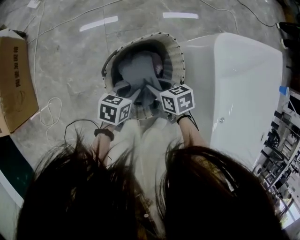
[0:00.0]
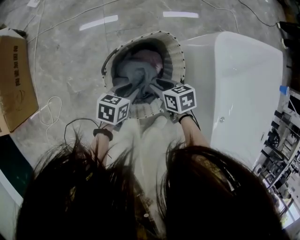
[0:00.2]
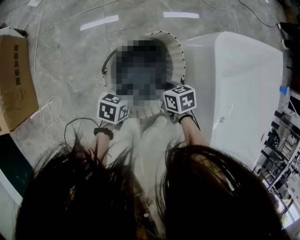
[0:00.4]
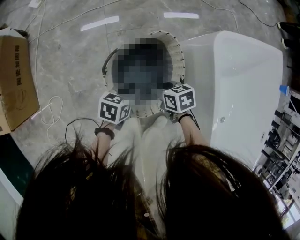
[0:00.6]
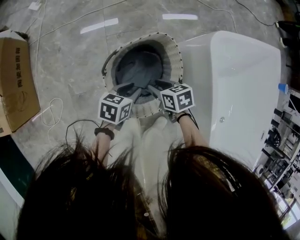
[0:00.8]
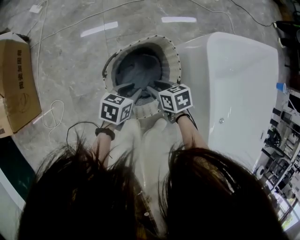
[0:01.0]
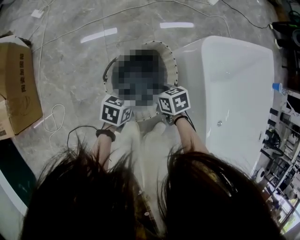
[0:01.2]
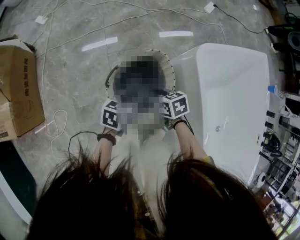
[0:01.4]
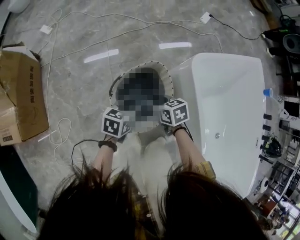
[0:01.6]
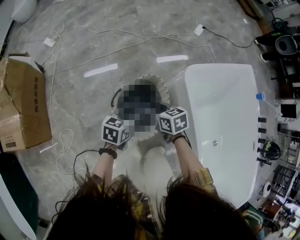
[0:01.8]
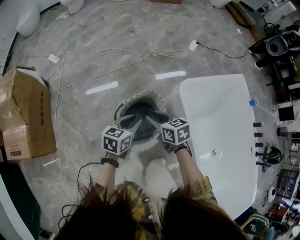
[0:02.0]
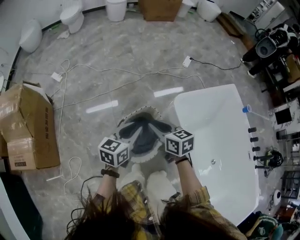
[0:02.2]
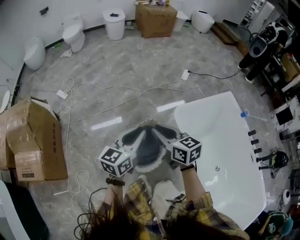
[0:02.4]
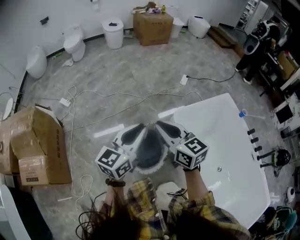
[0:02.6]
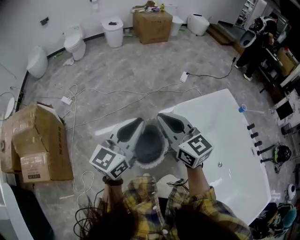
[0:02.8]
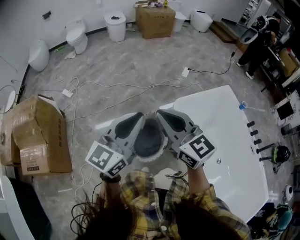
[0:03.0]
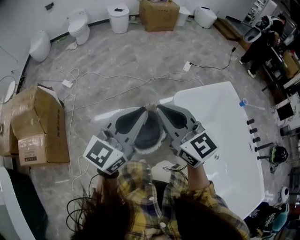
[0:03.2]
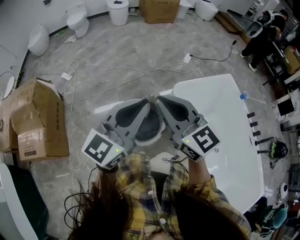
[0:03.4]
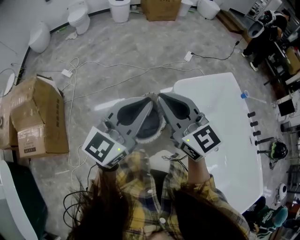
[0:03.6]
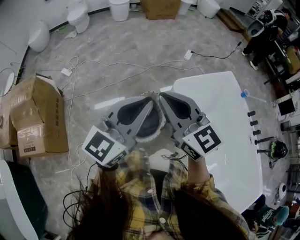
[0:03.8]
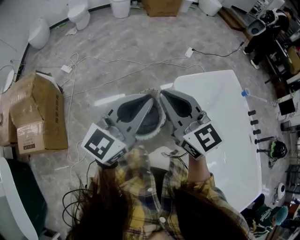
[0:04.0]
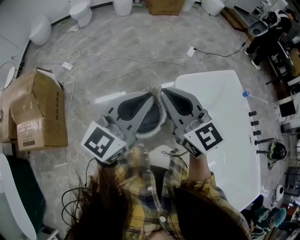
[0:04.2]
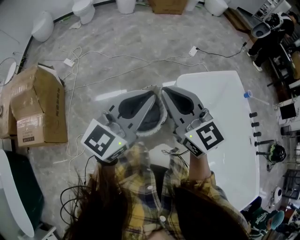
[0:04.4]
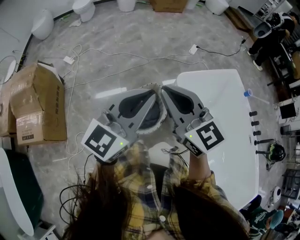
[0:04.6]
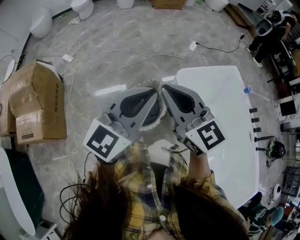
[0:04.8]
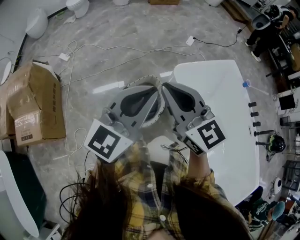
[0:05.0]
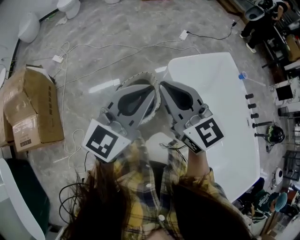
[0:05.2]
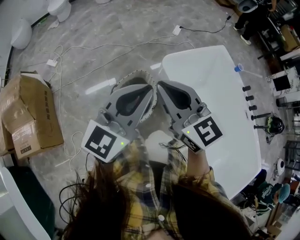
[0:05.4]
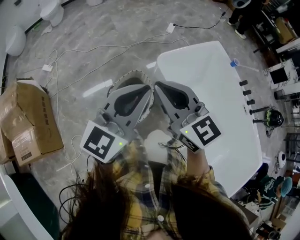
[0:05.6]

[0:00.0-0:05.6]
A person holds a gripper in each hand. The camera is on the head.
0.0 to 1.4 s: Both grippers move upward, approximately 10 cm.
1.4 to 2.8 s: The two grippers go some 50 cm upward. The left gripper angles its fingers upward, by roughly 50 degrees. The right gripper tips its fingers upward by approximately 50 degrees.
2.8 to 4.2 s: The two grippers go roughly 5 cm backward.
4.2 to 5.6 s: The right gripper moves about 5 cm. The left gripper heads to the right, covering roughly 5 cm.

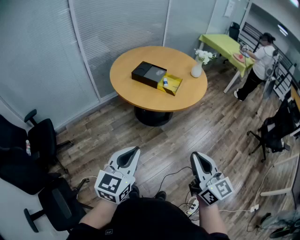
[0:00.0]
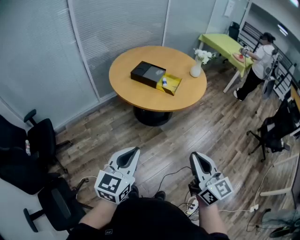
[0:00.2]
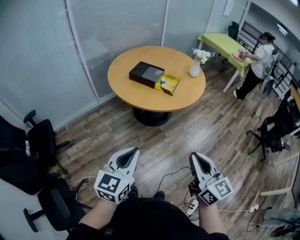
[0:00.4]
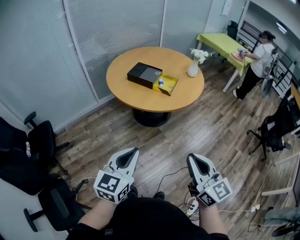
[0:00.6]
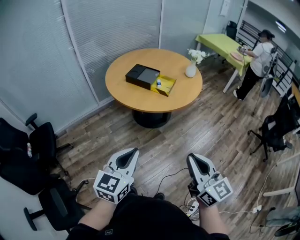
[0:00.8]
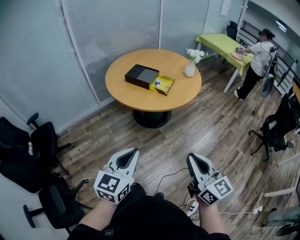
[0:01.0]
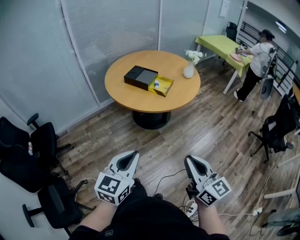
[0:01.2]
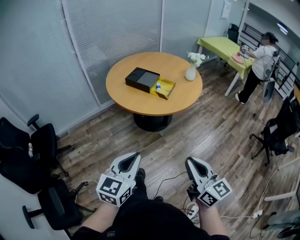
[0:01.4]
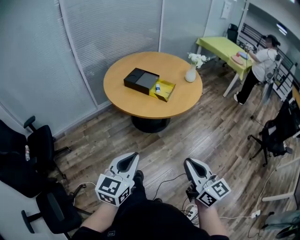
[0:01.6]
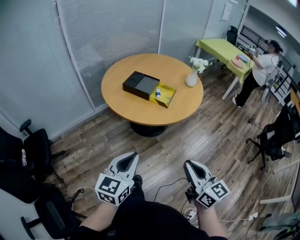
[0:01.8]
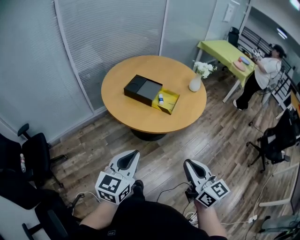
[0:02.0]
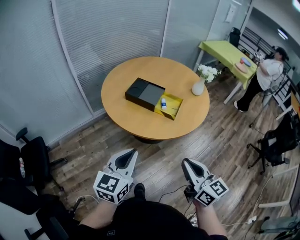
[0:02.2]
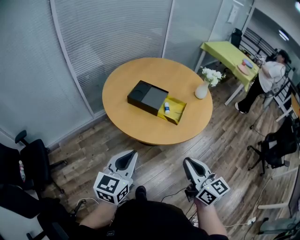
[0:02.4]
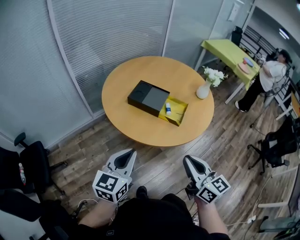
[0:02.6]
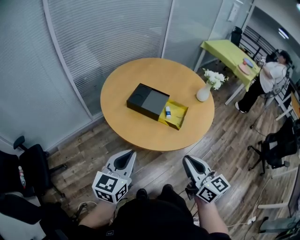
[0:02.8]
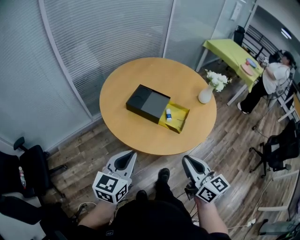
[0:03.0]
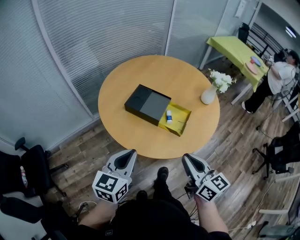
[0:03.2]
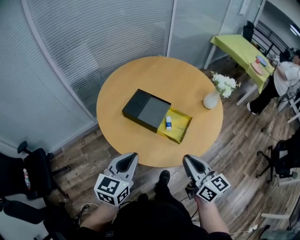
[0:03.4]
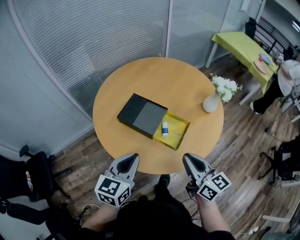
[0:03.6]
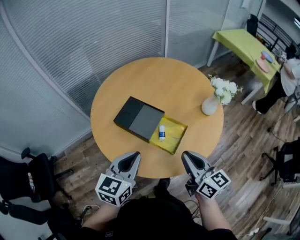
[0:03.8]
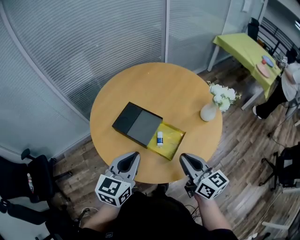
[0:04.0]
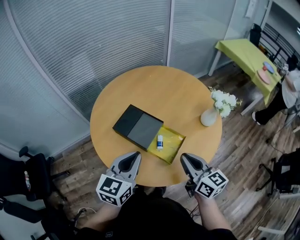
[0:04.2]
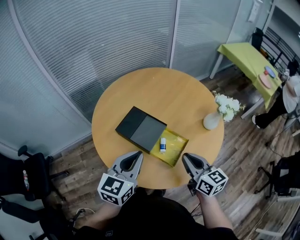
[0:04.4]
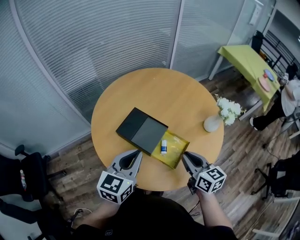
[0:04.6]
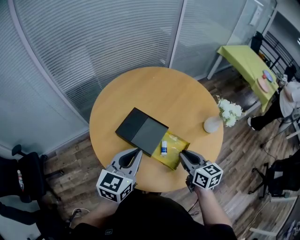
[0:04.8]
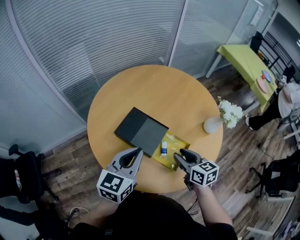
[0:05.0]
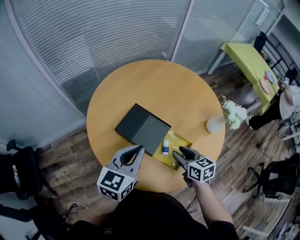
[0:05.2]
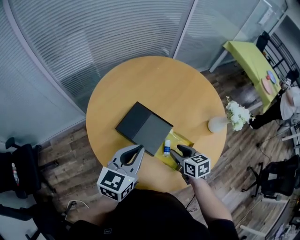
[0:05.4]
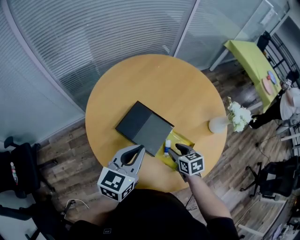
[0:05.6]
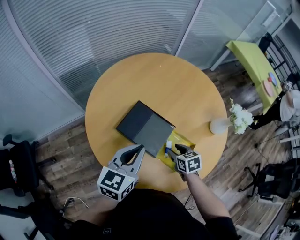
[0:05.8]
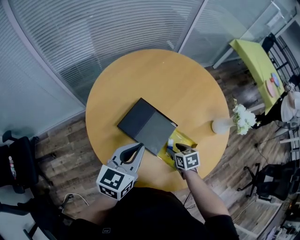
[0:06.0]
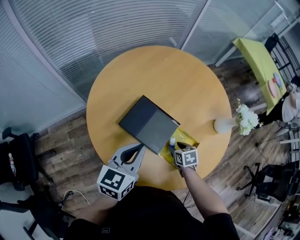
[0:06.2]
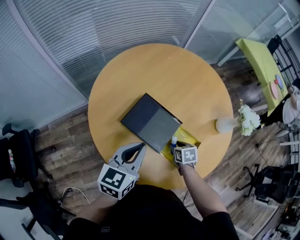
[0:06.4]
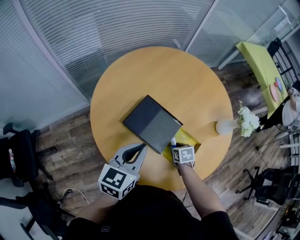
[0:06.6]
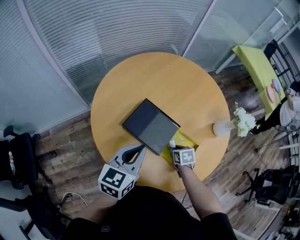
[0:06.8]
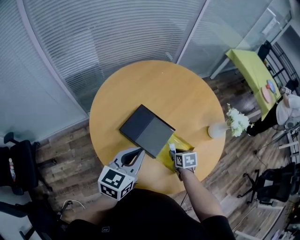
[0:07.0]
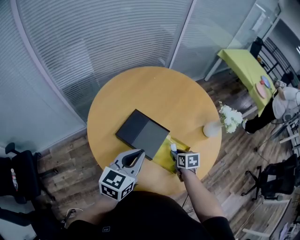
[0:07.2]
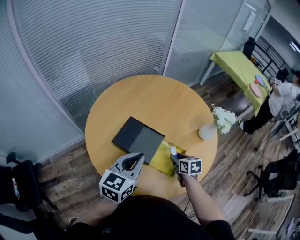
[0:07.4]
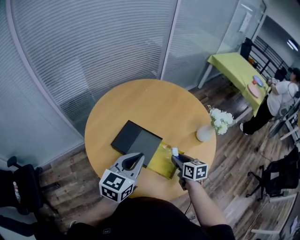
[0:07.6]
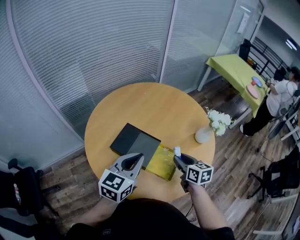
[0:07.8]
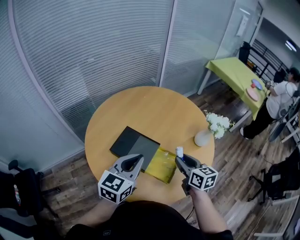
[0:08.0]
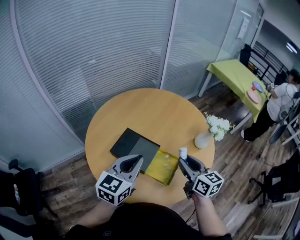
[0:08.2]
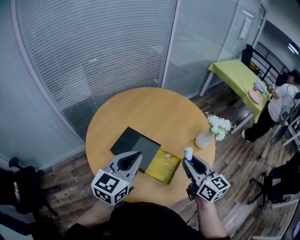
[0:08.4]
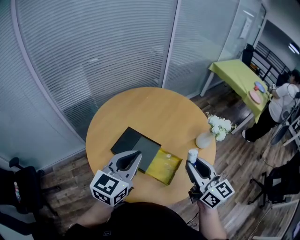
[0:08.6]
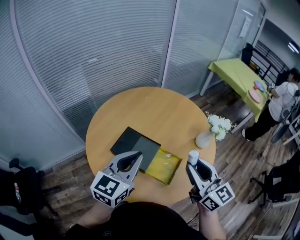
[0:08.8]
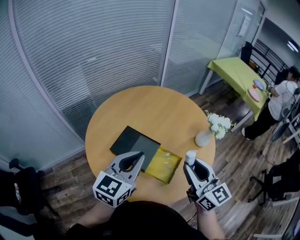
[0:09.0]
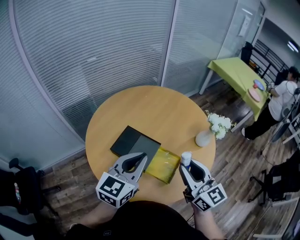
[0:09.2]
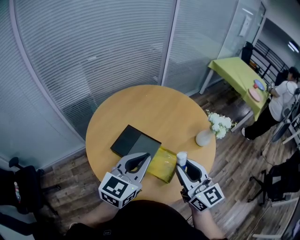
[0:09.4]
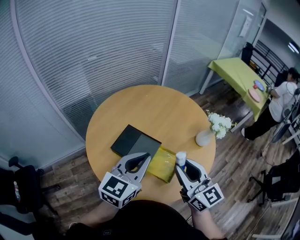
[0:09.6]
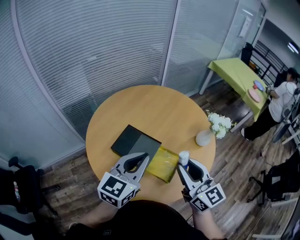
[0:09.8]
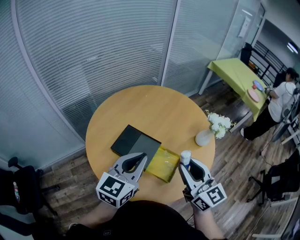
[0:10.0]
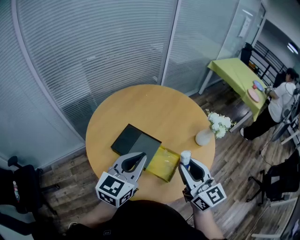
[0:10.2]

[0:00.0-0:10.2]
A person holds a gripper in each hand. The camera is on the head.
0.0 to 1.4 s: Both grippers travel together to the right, roughly 10 cm.
1.4 to 3.0 s: The two grippers go roughly 35 cm forward.
3.0 to 4.4 s: Both grippers move forward and to the right, about 25 cm.
4.4 to 5.8 s: The right gripper heads downward and forward, covering about 25 cm, angles its fingers downward, by approximately 40 degrees, and opens its fingers; the left gripper is displaced forward, to the left and downward by roughly 10 cm.
7.2 to 8.8 s: The left gripper is displaced upward by roughly 10 cm, while the right gripper is displaced upward by about 35 cm, and points its fingers roughly 50 degrees further upward.
8.8 to 10.2 s: There are only small adjustments of the grippers.

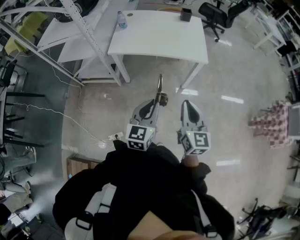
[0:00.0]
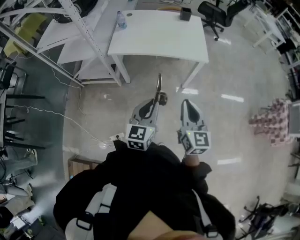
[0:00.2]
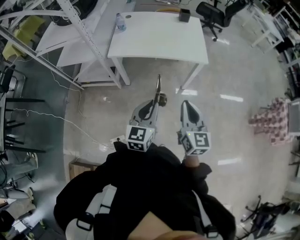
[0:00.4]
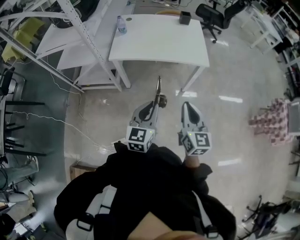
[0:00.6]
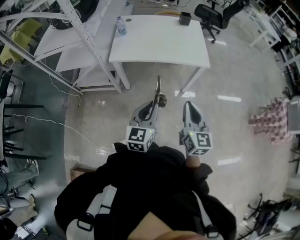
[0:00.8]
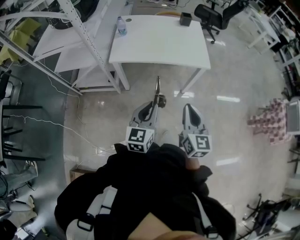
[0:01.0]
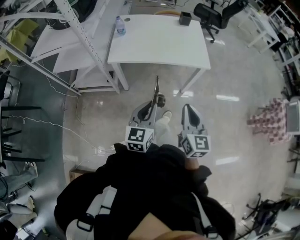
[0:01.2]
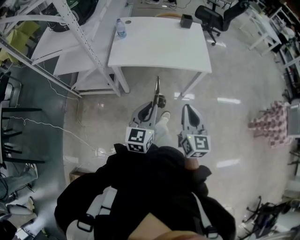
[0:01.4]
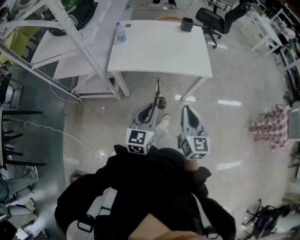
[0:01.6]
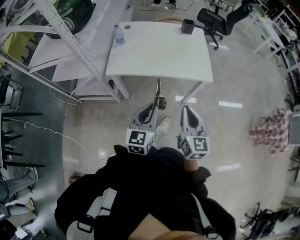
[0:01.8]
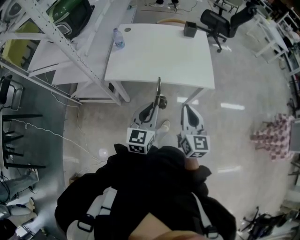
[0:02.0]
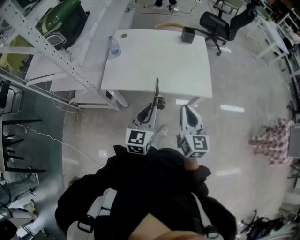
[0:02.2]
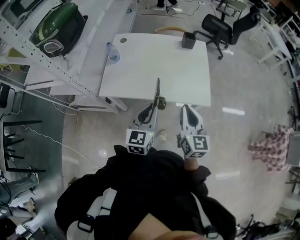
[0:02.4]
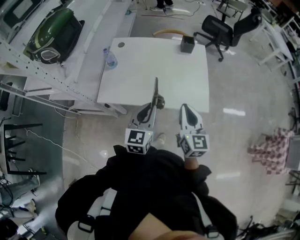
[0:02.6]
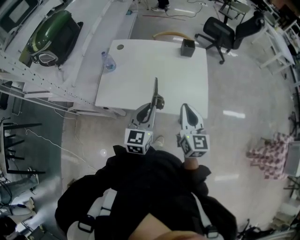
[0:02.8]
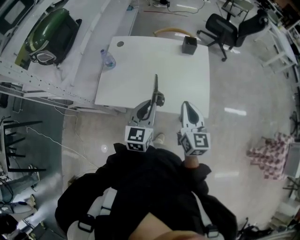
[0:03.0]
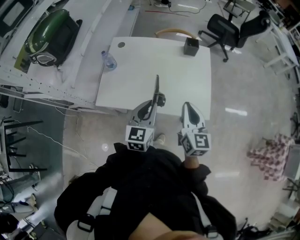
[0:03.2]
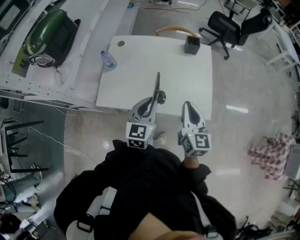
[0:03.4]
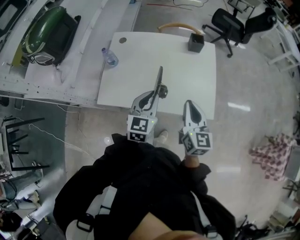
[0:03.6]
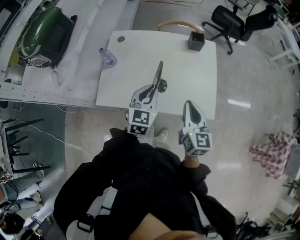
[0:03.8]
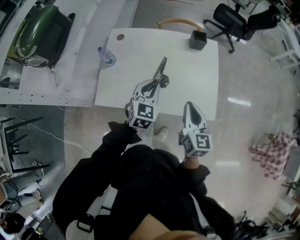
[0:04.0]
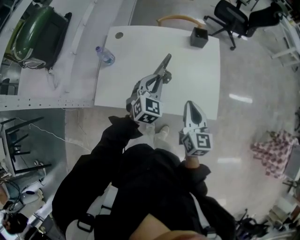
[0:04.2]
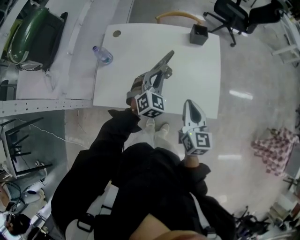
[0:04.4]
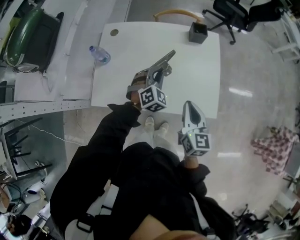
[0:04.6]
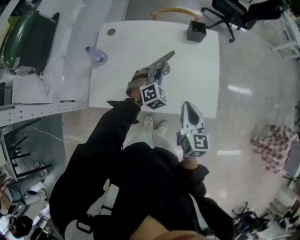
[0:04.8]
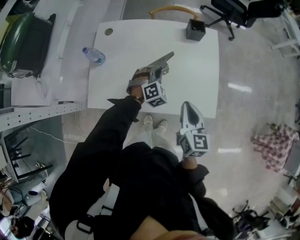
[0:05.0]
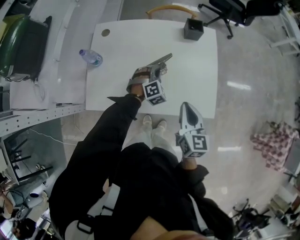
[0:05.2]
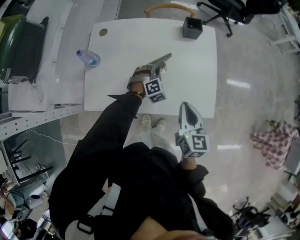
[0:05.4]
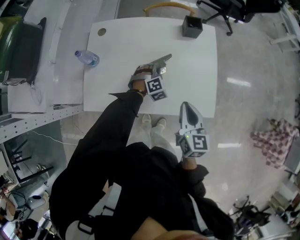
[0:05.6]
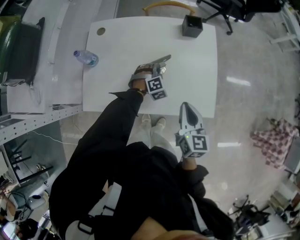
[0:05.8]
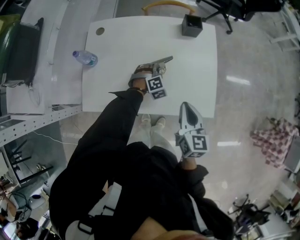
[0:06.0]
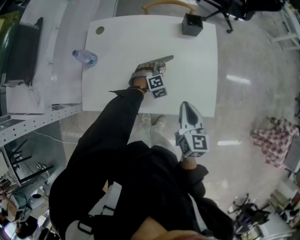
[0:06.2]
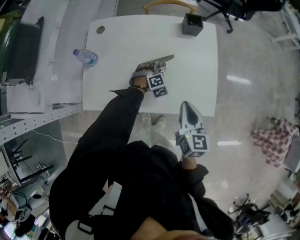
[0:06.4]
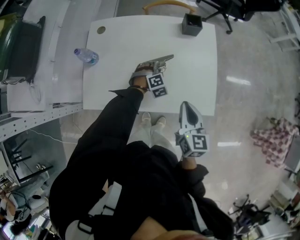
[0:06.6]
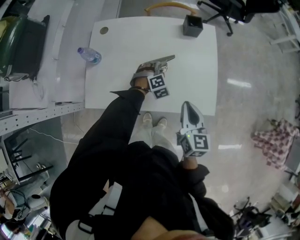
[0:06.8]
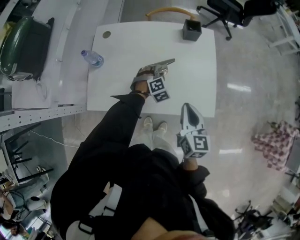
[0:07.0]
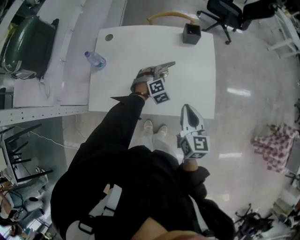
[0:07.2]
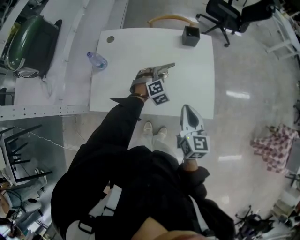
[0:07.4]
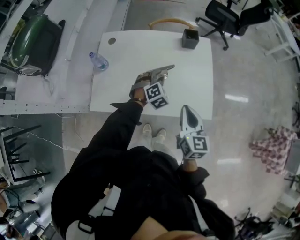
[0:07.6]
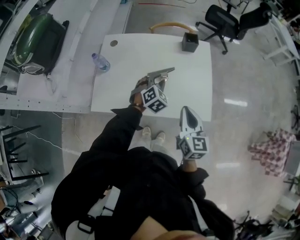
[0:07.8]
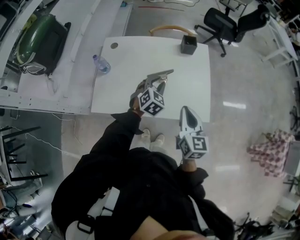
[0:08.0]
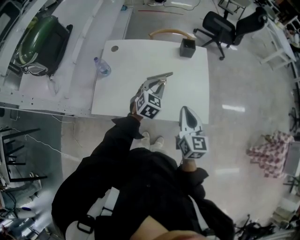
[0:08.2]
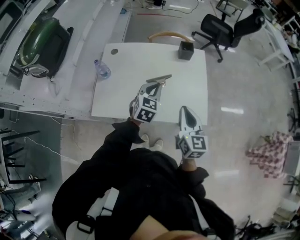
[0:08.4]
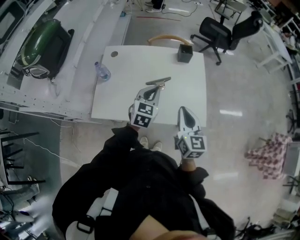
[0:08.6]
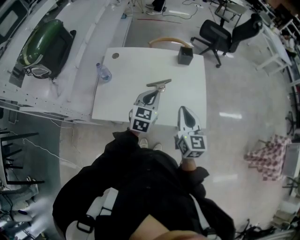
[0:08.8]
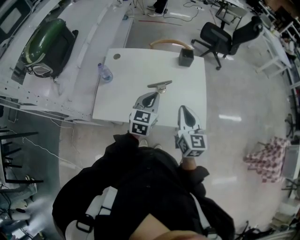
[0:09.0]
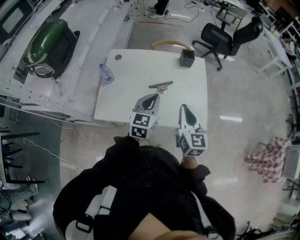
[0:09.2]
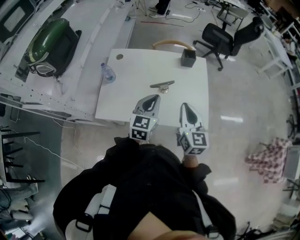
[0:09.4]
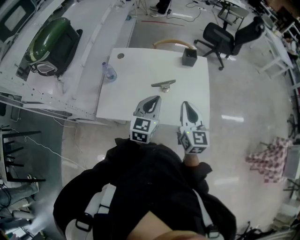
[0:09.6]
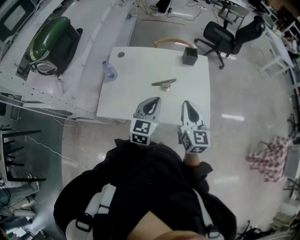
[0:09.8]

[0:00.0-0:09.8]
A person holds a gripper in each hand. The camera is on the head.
0.0 to 1.4 s: The grippers both shift forward and to the left by approximately 10 cm.
1.4 to 2.8 s: Both grippers move forward, some 35 cm.
2.8 to 4.2 s: The right gripper goes roughly 10 cm forward and downward. Meanwhile the left gripper goes roughly 20 cm forward, and turns by about 30 degrees.
4.2 to 5.6 s: The left gripper heads downward and forward, covering about 20 cm, and swivels approximately 40 degrees. The right gripper moves roughly 5 cm.
5.6 to 7.0 s: There are only small adjustments of the grippers.
7.0 to 8.4 s: The left gripper moves upward and backward, roughly 20 cm, rotates around the line of its fingers by some 40 degrees, counterclockwise from behind, and closes its fingers. Meanwhile the right gripper heads upward, covering about 5 cm.
8.4 to 9.8 s: The left gripper moves backward and upward, approximately 10 cm.
